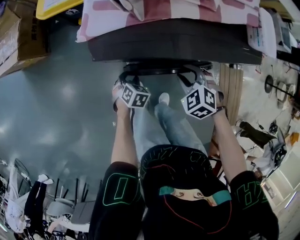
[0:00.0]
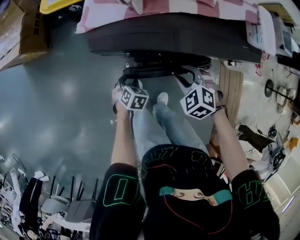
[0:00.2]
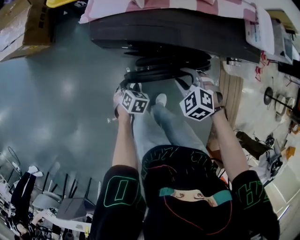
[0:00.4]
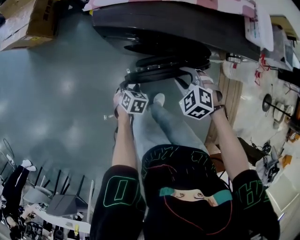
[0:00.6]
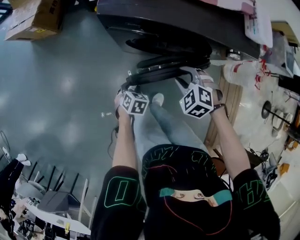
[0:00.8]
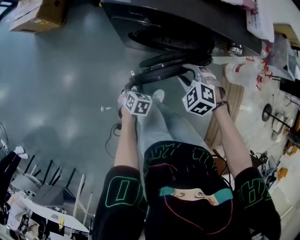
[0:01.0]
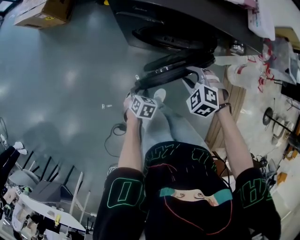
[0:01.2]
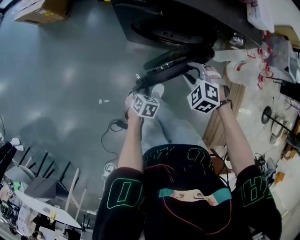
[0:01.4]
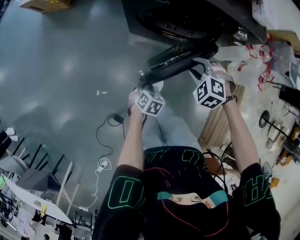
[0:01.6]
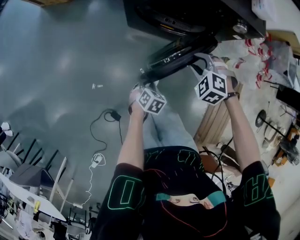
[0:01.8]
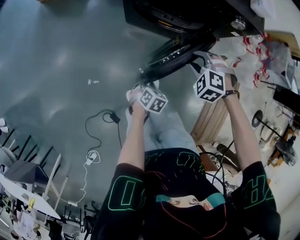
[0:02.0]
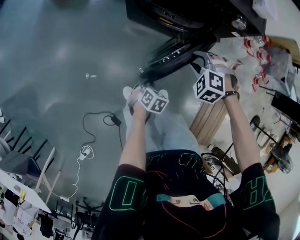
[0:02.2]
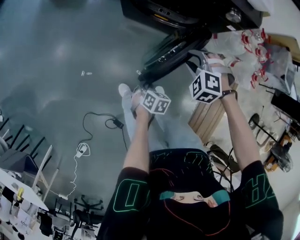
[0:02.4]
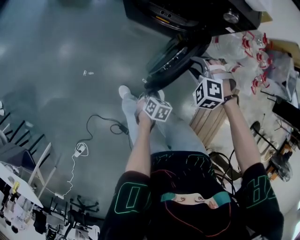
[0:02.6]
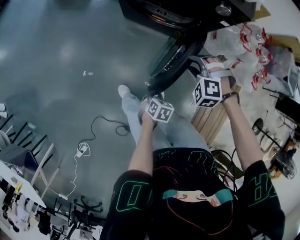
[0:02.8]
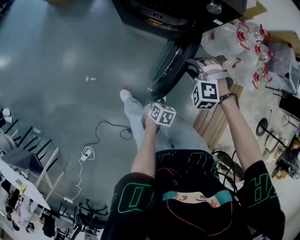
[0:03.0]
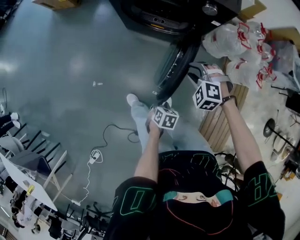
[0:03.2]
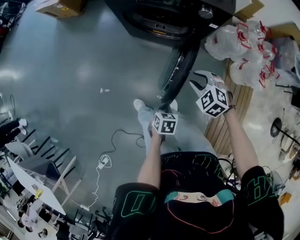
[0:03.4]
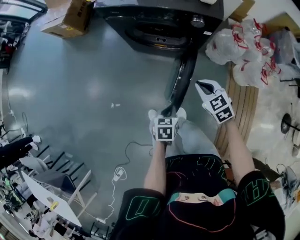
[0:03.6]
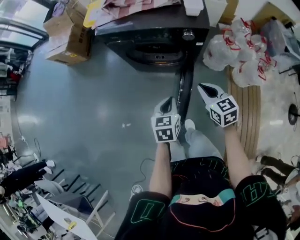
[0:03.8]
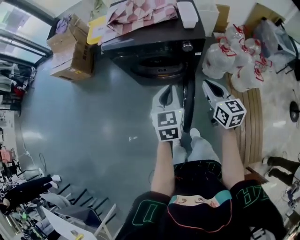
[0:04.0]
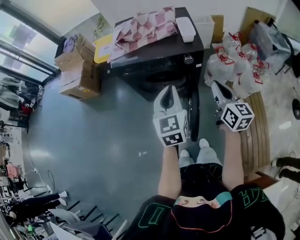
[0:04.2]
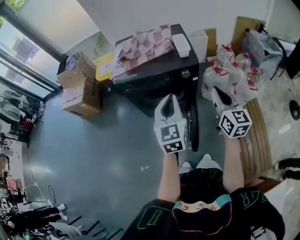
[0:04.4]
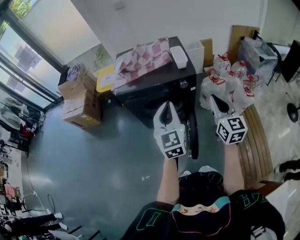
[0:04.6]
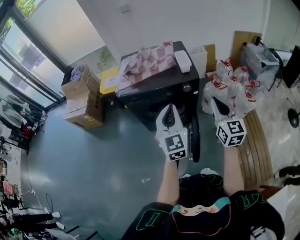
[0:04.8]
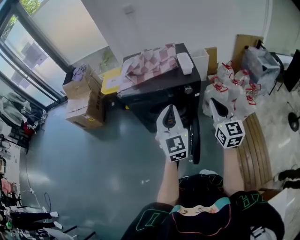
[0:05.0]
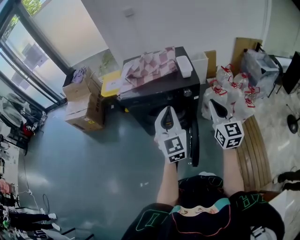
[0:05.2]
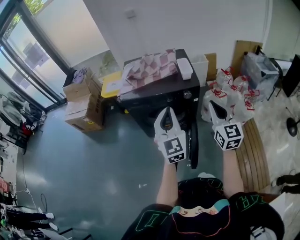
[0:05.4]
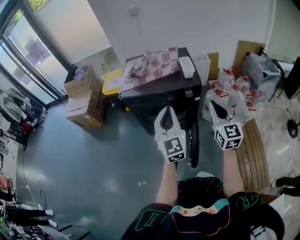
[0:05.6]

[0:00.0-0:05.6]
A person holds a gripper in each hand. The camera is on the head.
0:00.0 to 0:01.4: The left gripper travels backward by approximately 30 cm. The right gripper is displaced backward by roughly 15 cm, and changes its angle by some 30 degrees.
0:01.4 to 0:02.8: The left gripper is displaced to the right and backward by about 30 cm. Meanwhile the right gripper goes roughly 15 cm to the right and backward, and turns by approximately 30 degrees.
0:02.8 to 0:04.2: The right gripper is displaced upward by approximately 30 cm, rotates around the line of its fingers by about 100 degrees, clockwise from behind, and closes its fingers, while the left gripper heads upward and forward, covering roughly 50 cm, and tilts its fingers roughly 60 degrees upward.
0:04.2 to 0:05.6: Both grippers travel together upward, some 10 cm. The left gripper turns by about 20 degrees. The right gripper swivels about 30 degrees.

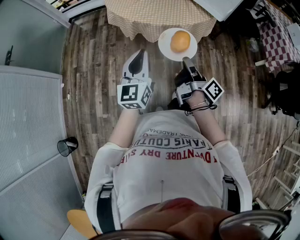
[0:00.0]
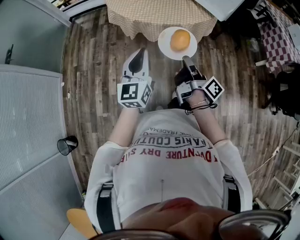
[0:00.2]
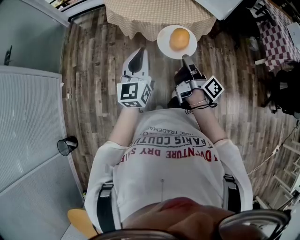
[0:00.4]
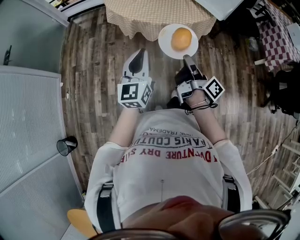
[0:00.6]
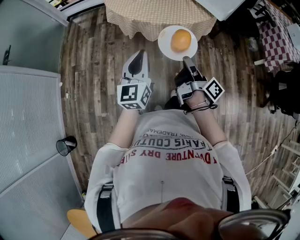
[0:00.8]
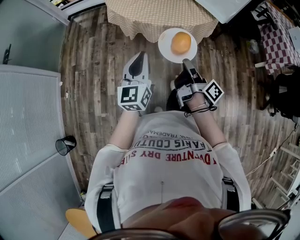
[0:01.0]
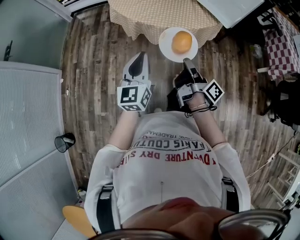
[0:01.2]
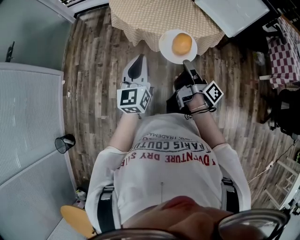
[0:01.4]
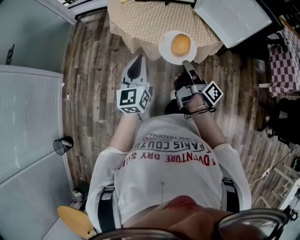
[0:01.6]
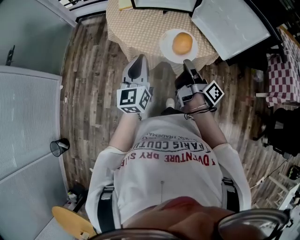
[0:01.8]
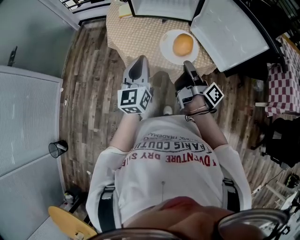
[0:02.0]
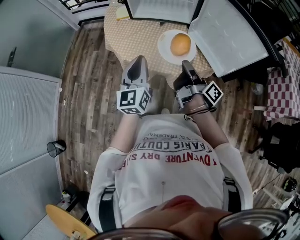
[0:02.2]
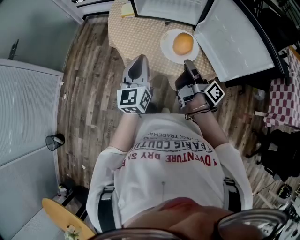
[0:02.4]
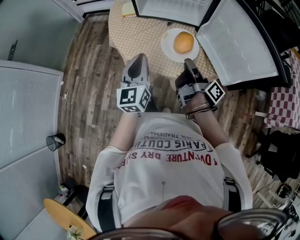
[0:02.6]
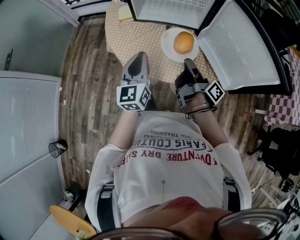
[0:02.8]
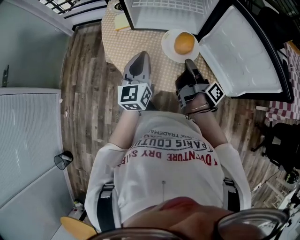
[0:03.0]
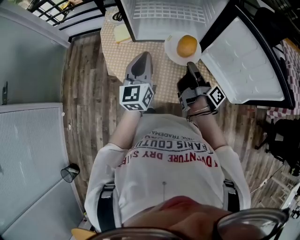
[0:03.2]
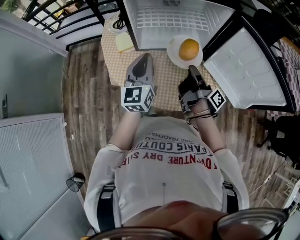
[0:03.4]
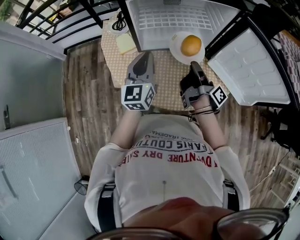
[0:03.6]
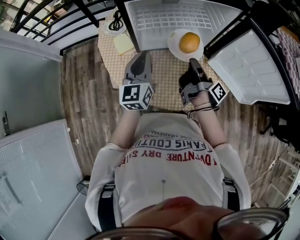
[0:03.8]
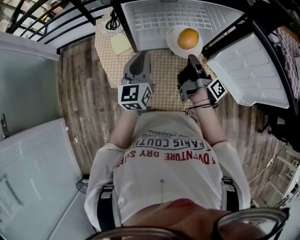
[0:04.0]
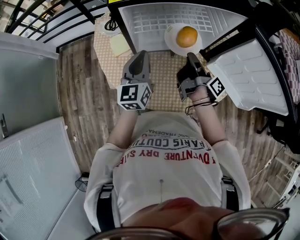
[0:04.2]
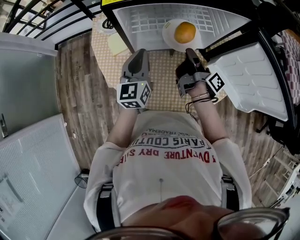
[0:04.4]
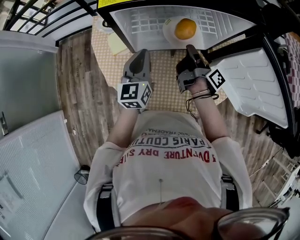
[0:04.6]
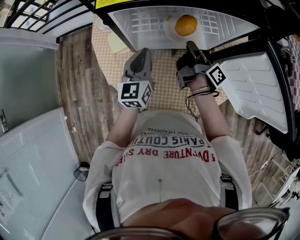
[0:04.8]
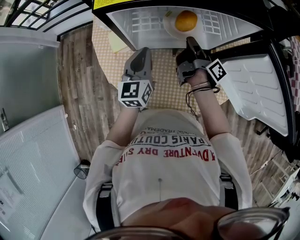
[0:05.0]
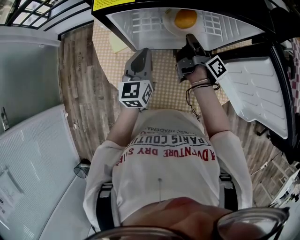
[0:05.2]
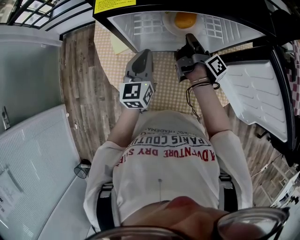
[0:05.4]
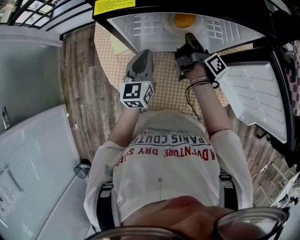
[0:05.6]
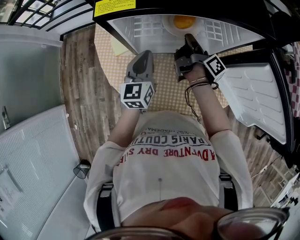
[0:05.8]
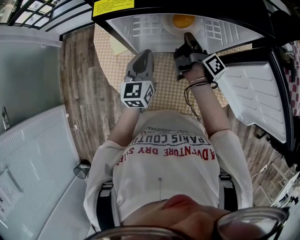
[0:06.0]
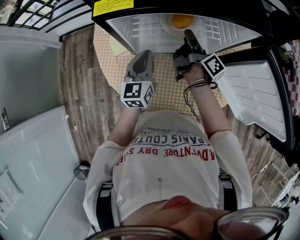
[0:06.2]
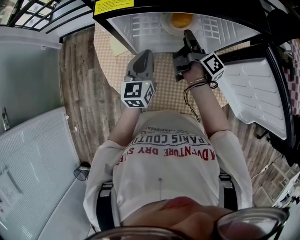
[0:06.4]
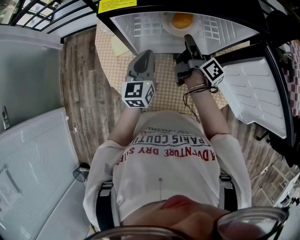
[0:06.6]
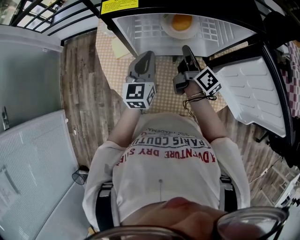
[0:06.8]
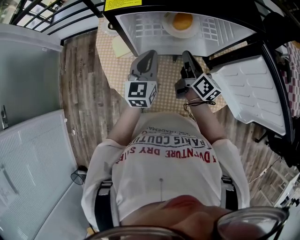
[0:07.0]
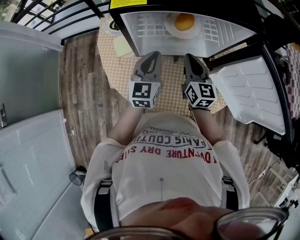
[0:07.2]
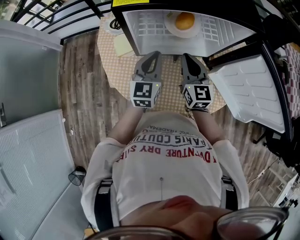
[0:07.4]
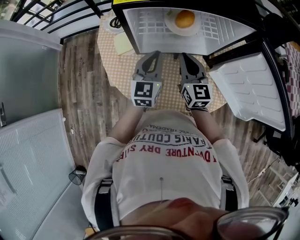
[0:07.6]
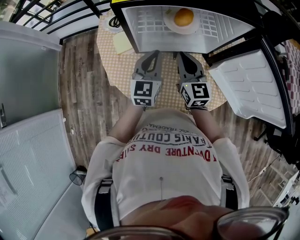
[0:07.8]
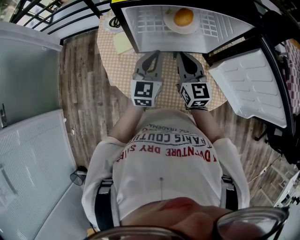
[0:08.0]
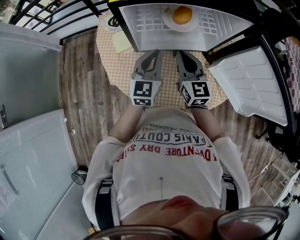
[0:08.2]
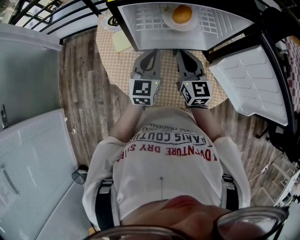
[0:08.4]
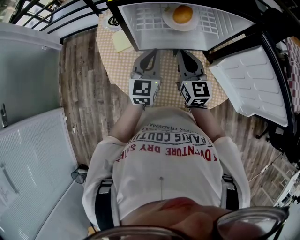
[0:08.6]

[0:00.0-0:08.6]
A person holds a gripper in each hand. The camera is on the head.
0:00.0 to 0:01.4: The left gripper ends up about 10 cm from where it was.
0:01.4 to 0:02.8: The left gripper ends up approximately 30 cm from where it was.
0:02.8 to 0:04.4: The left gripper shifts by about 30 cm.
0:04.4 to 0:05.8: The left gripper changes place by roughly 5 cm.

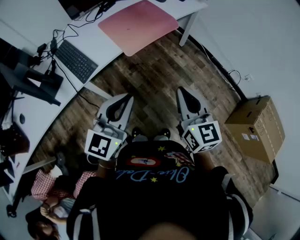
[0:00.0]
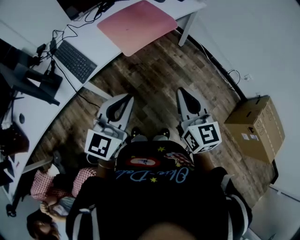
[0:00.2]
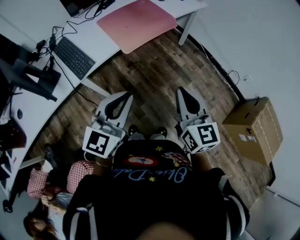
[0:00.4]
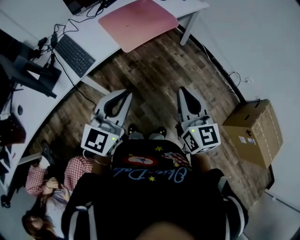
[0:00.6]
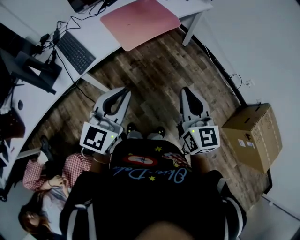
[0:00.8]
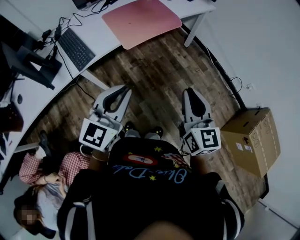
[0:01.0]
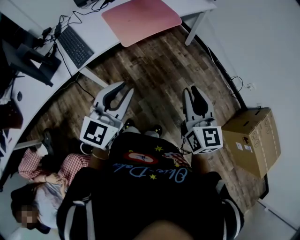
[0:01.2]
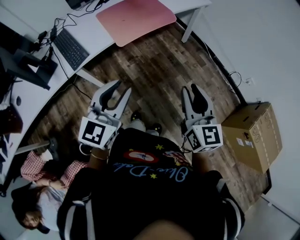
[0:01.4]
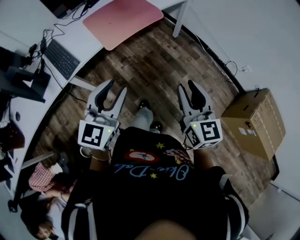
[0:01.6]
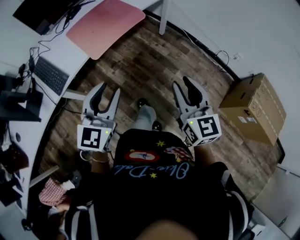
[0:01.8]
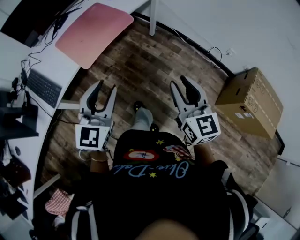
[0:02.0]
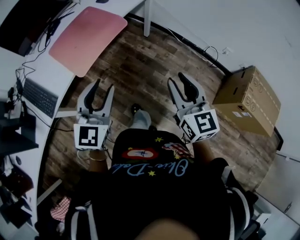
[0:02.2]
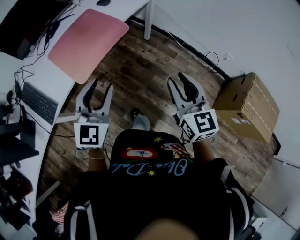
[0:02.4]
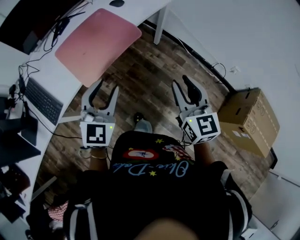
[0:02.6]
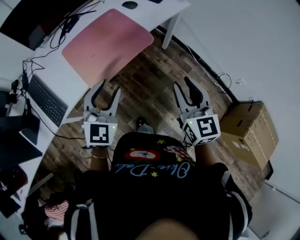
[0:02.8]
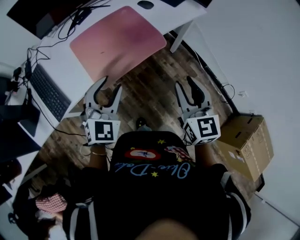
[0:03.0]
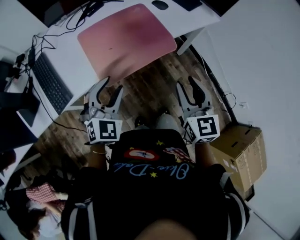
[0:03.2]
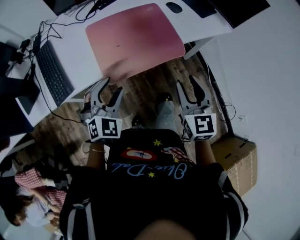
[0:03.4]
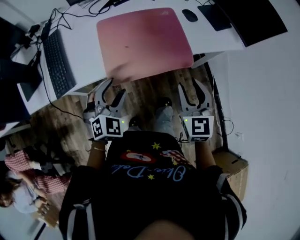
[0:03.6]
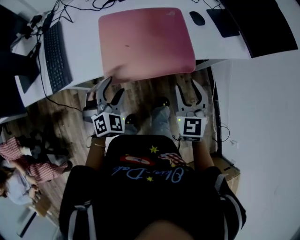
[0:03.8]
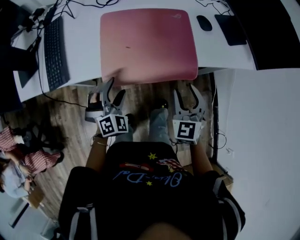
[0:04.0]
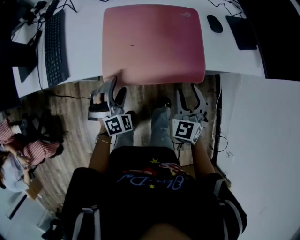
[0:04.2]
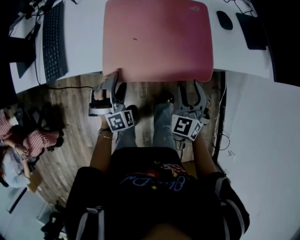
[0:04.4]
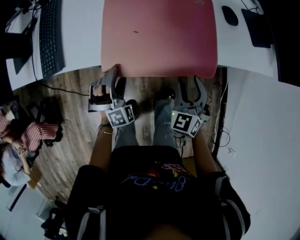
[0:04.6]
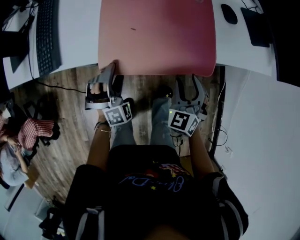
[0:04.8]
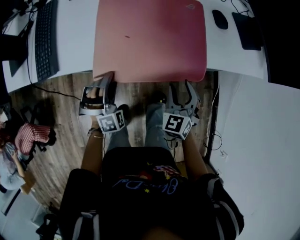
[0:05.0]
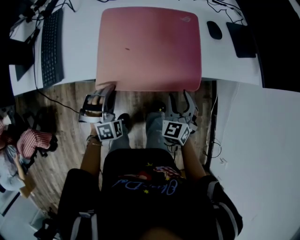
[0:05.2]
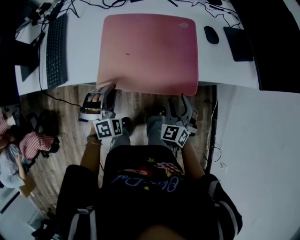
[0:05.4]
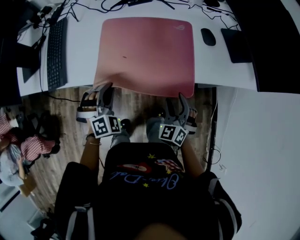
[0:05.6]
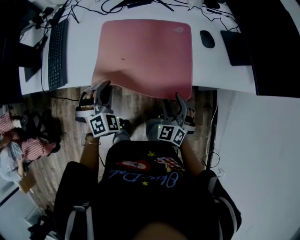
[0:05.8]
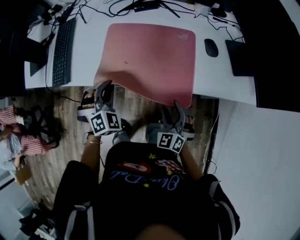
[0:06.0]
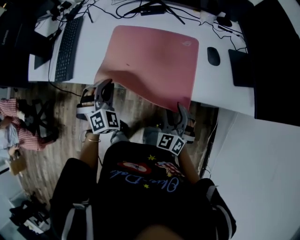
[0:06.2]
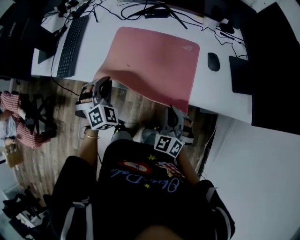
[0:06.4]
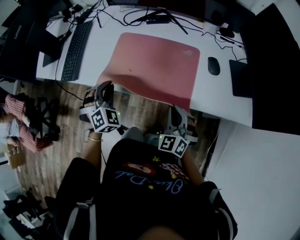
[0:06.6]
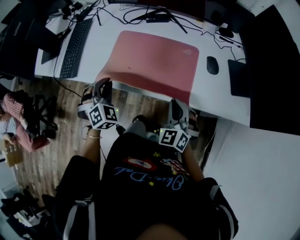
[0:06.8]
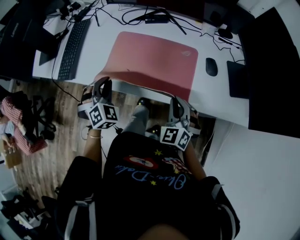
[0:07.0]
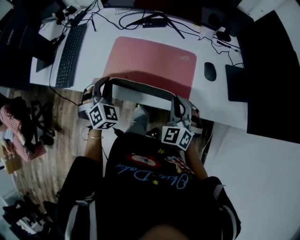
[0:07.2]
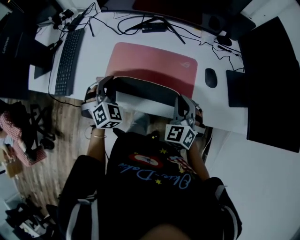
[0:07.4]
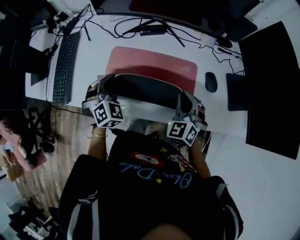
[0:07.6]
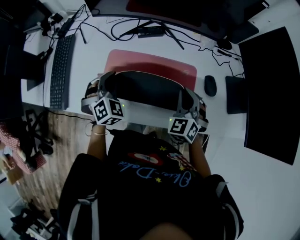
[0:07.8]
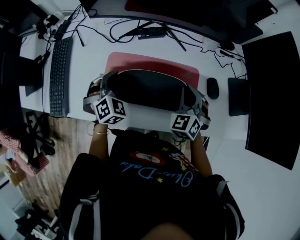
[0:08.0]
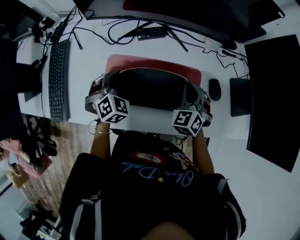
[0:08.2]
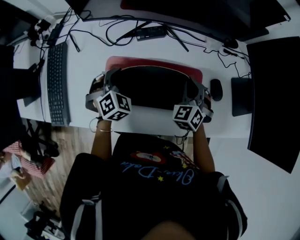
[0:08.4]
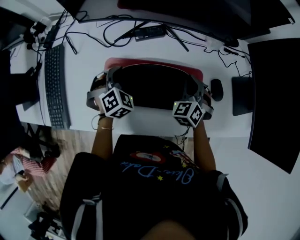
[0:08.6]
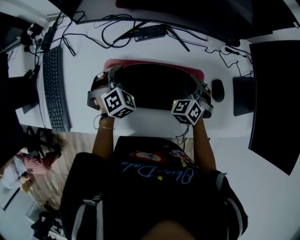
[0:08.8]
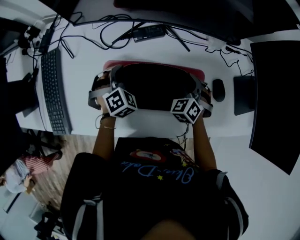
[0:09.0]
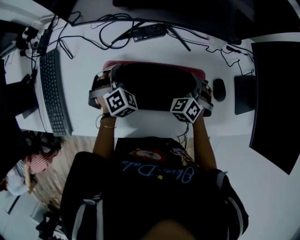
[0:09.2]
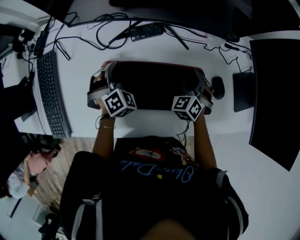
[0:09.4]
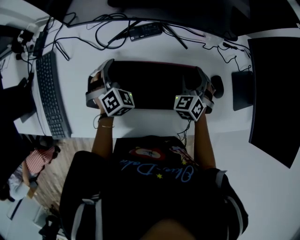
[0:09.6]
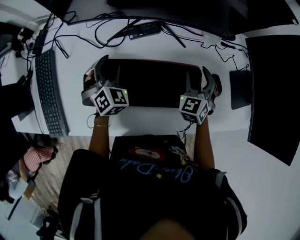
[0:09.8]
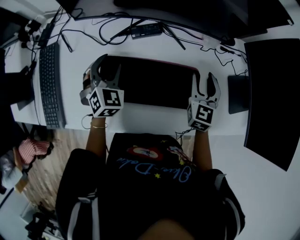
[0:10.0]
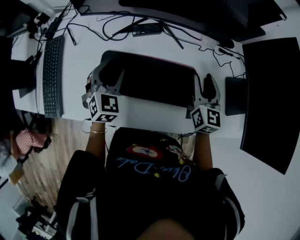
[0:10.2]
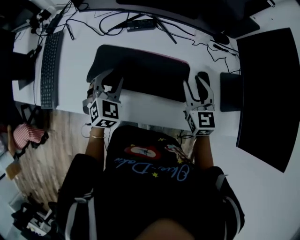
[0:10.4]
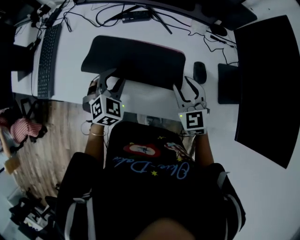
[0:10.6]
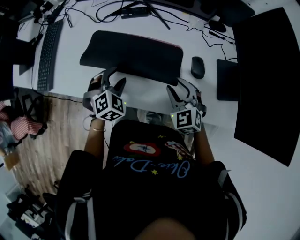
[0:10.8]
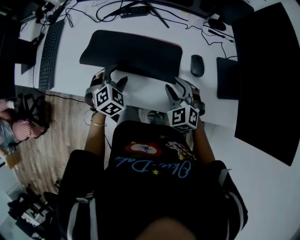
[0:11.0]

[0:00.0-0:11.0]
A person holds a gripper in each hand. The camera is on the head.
0:00.0 to 0:01.6: The right gripper heads to the right, covering roughly 10 cm, and opens its fingers, while the left gripper goes roughly 10 cm to the right, and opens.
0:01.6 to 0:03.2: Both grippers travel together forward, about 30 cm. The left gripper swivels about 30 degrees.
0:03.2 to 0:04.8: Both grippers move downward, some 20 cm. The right gripper turns by roughly 40 degrees. The left gripper swivels roughly 50 degrees, and opens.
0:04.8 to 0:06.2: The right gripper moves approximately 5 cm. Meanwhile the left gripper moves upward, about 10 cm, and closes.
0:06.2 to 0:07.8: The two grippers go about 20 cm forward. The right gripper closes up.
0:07.8 to 0:09.4: The two grippers go about 15 cm forward and downward. The right gripper opens.
0:09.4 to 0:11.0: The left gripper travels backward and to the right by approximately 20 cm, while the right gripper moves backward, about 15 cm, and changes its angle by approximately 30 degrees.
